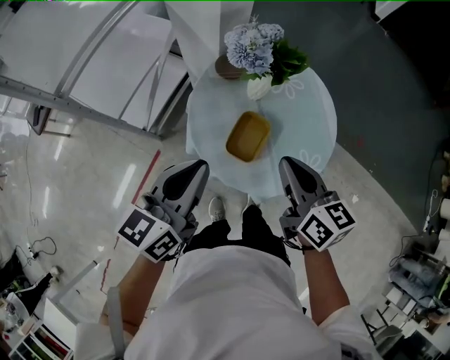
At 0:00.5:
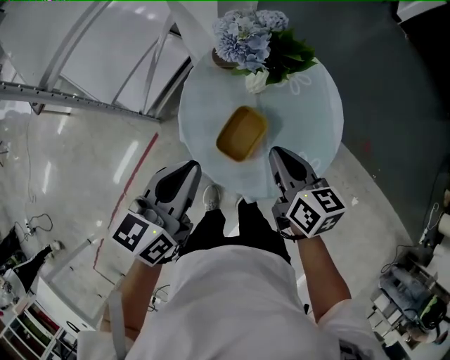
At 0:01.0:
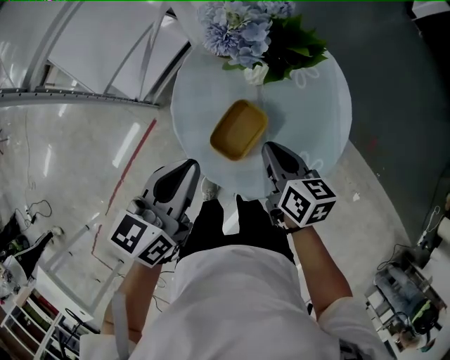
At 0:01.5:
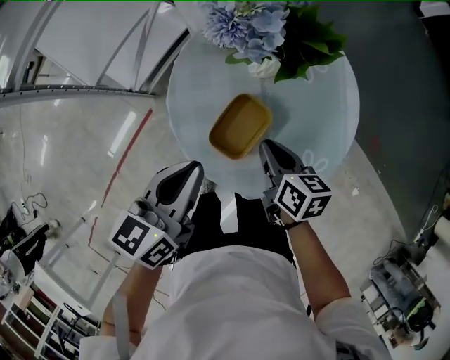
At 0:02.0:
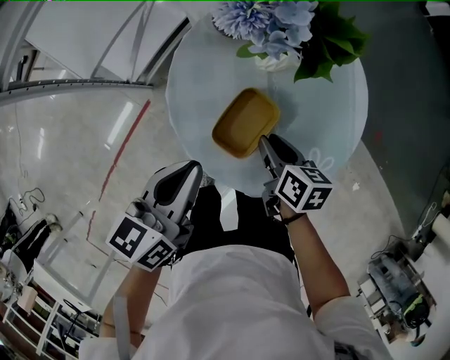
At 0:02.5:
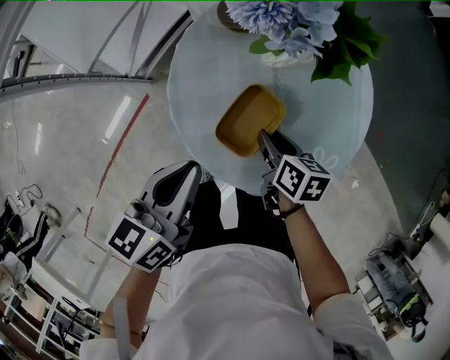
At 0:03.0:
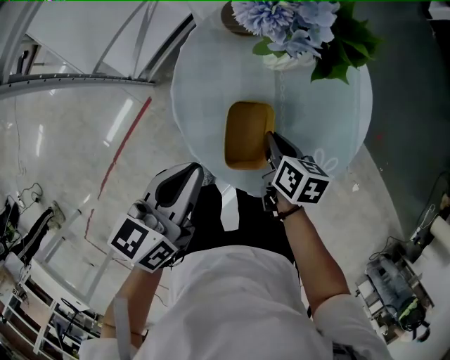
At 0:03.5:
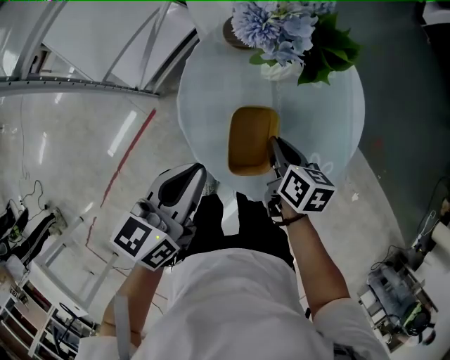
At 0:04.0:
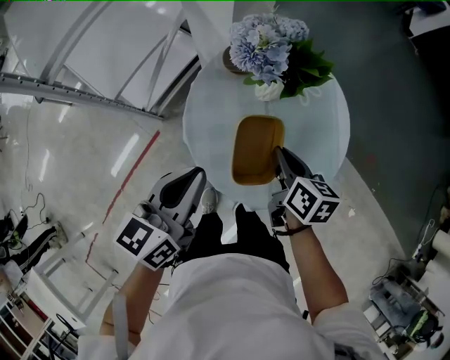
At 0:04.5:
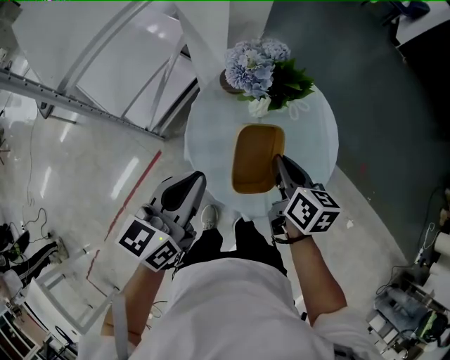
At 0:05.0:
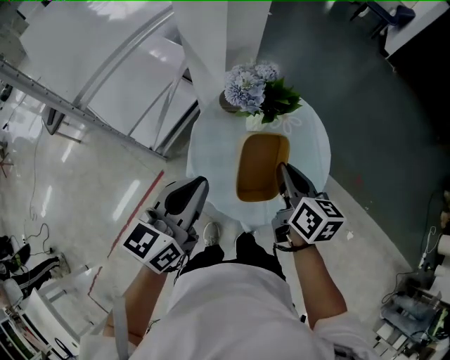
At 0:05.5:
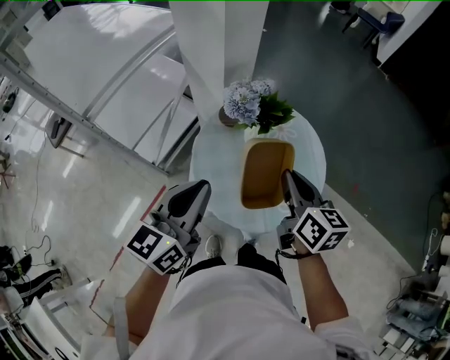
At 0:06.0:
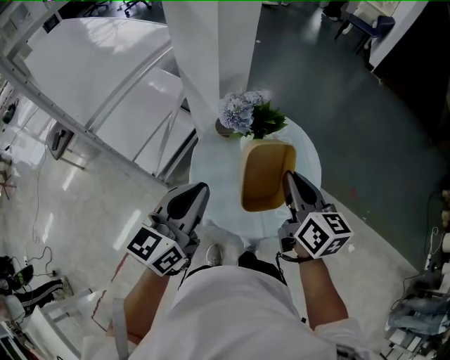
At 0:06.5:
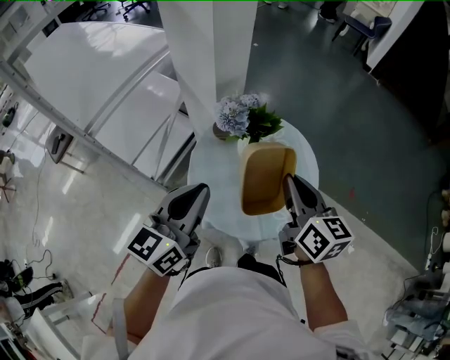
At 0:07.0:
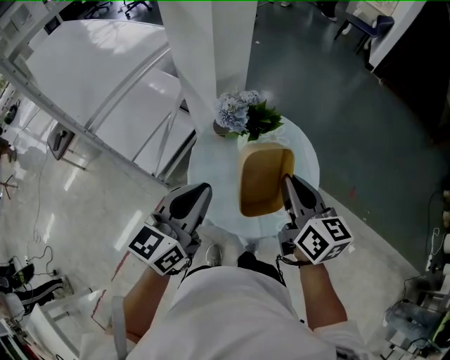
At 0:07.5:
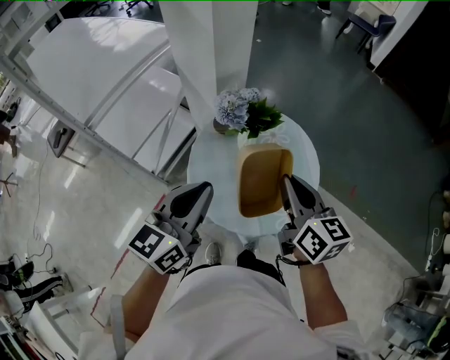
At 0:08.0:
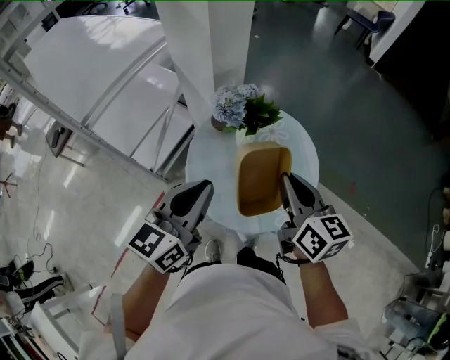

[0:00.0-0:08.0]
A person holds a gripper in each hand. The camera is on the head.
0:00.0 to 0:02.0: The right gripper shifts approximately 25 cm downward, rotates approximately 30 degrees, and opens up. Meanwhile the left gripper heads downward, covering roughly 15 cm.
0:02.0 to 0:04.0: The grippers both shift upward by some 10 cm. The right gripper closes its fingers.
0:04.0 to 0:06.0: The right gripper heads upward, covering some 25 cm, and swivels about 30 degrees; the left gripper goes roughly 15 cm upward.
0:06.0 to 0:08.0: The grippers move only a little.

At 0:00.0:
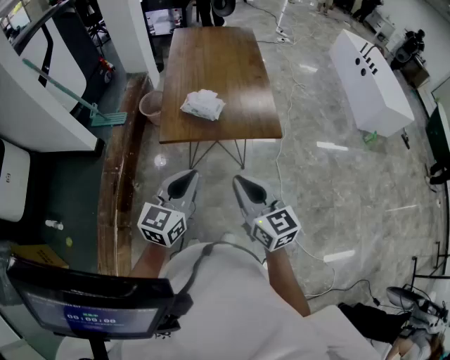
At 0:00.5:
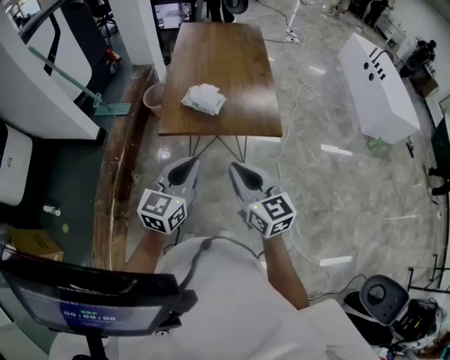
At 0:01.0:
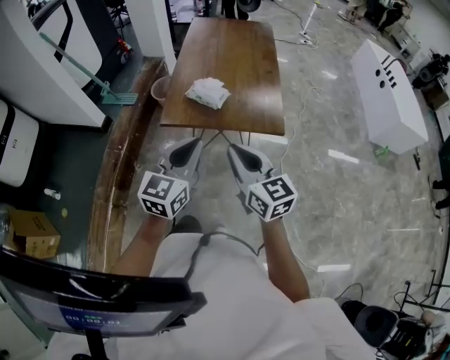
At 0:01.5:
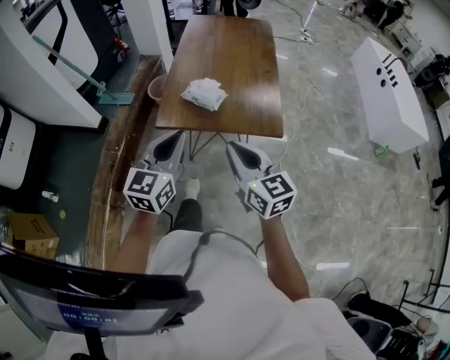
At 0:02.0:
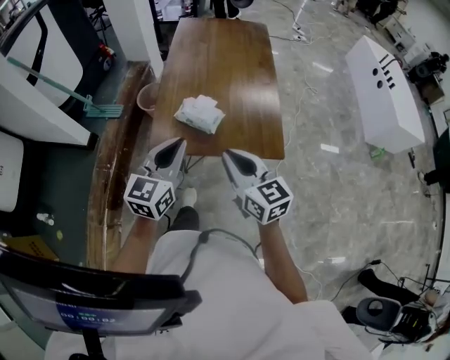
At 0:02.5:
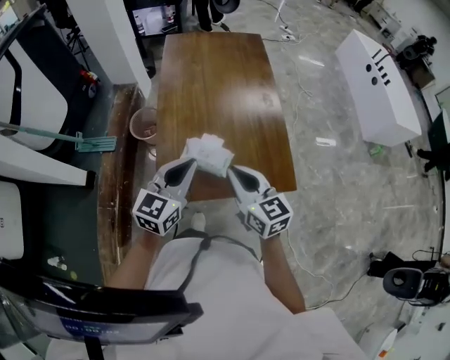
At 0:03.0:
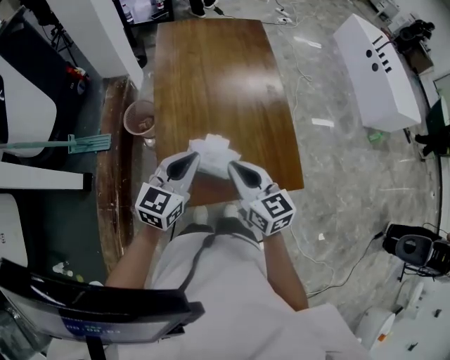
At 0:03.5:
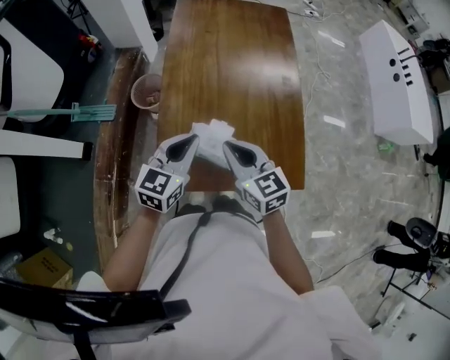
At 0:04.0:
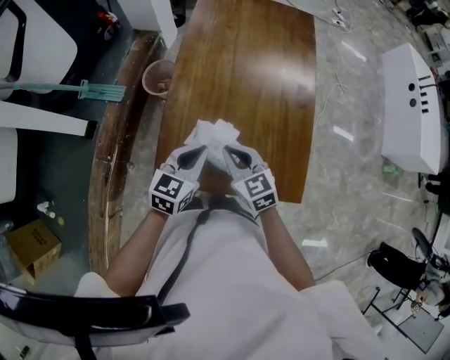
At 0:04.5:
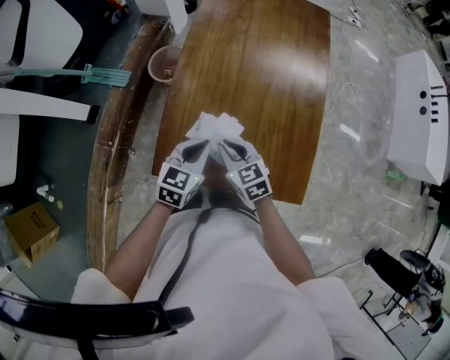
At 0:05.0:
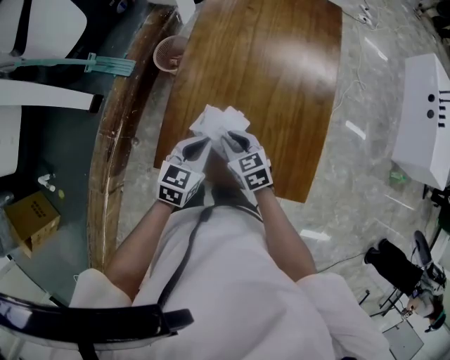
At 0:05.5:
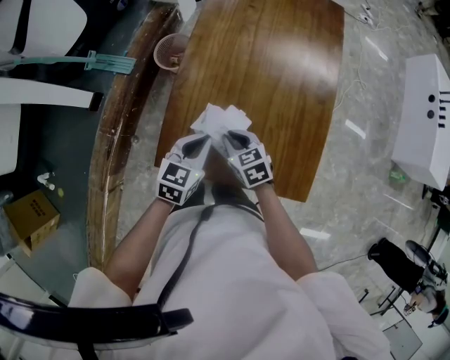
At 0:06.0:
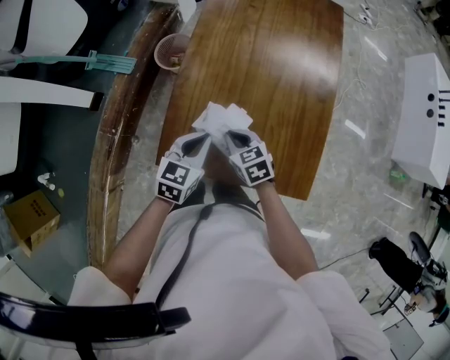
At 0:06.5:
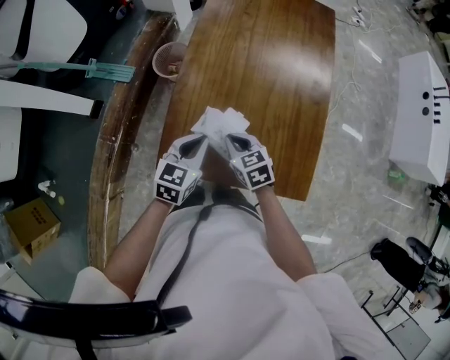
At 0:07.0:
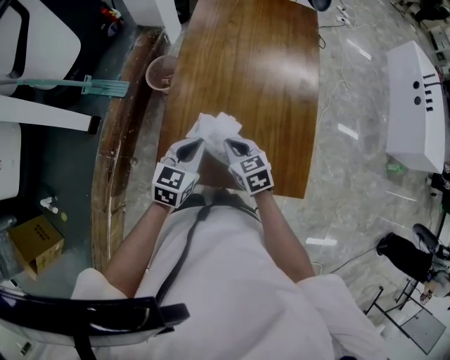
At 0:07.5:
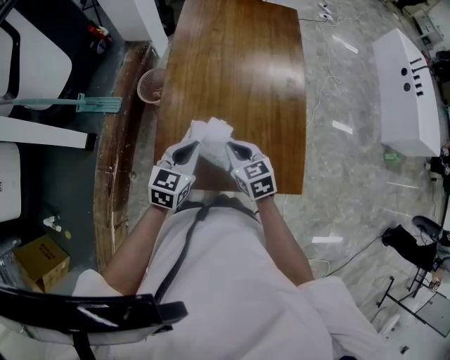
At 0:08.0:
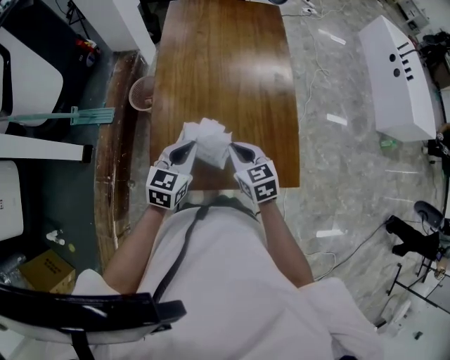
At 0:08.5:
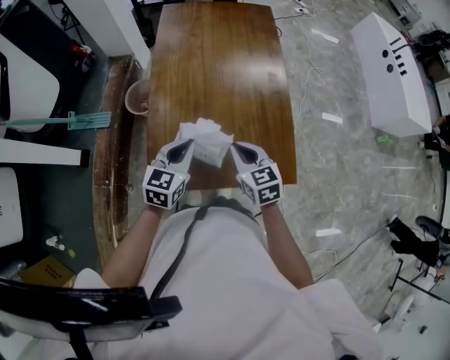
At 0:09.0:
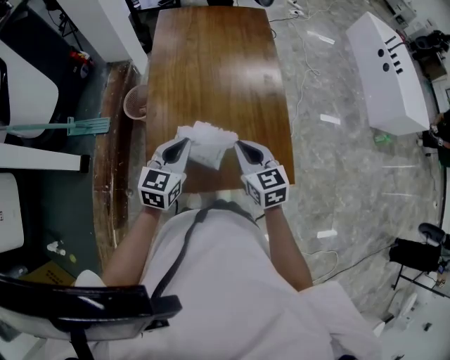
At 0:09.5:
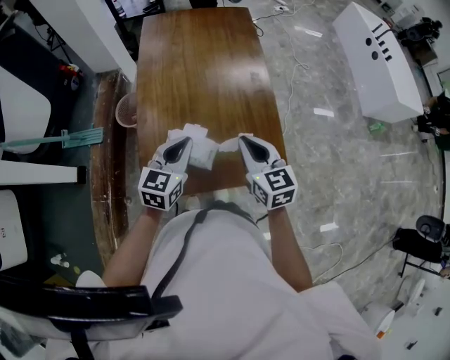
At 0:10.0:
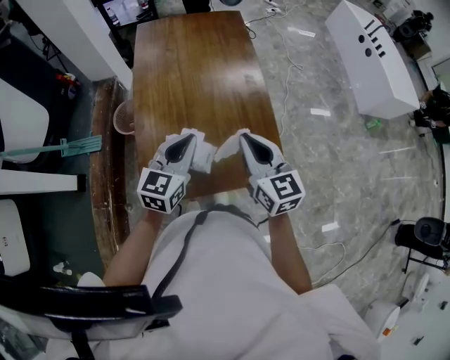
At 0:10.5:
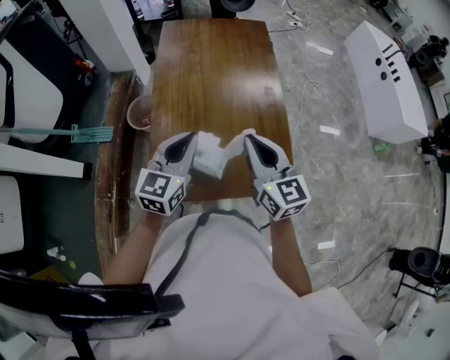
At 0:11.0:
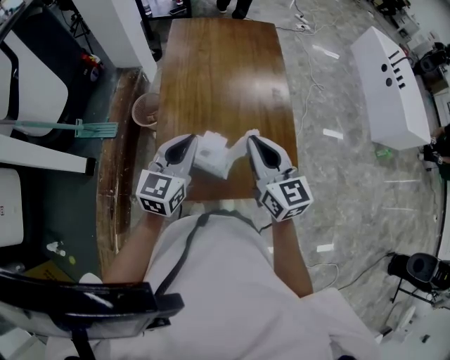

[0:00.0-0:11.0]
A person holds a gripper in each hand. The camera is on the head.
0:00.0 to 0:02.0: The grippers both shift forward by roughly 20 cm.
0:02.0 to 0:03.5: Both grippers move forward, about 25 cm.
0:03.5 to 0:05.5: The right gripper heads downward, covering approximately 20 cm, and changes its angle by about 30 degrees; the left gripper travels downward by approximately 10 cm.
0:05.5 to 0:07.5: The right gripper shifts some 5 cm upward.
0:07.5 to 0:09.0: The right gripper is displaced upward and to the right by approximately 10 cm.
0:09.0 to 0:11.0: The two grippers go roughly 10 cm upward.

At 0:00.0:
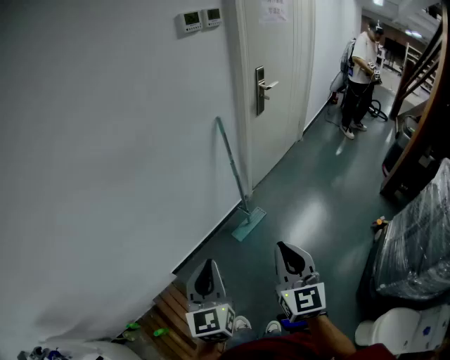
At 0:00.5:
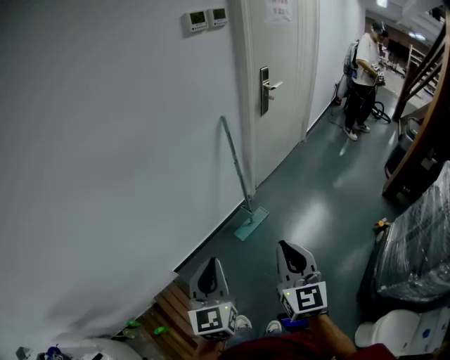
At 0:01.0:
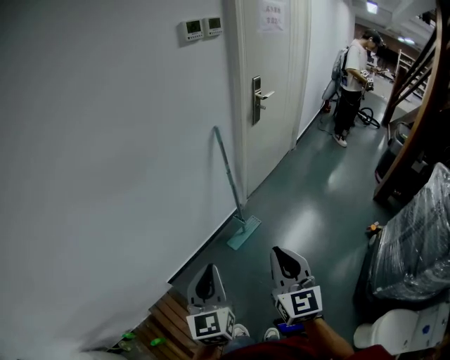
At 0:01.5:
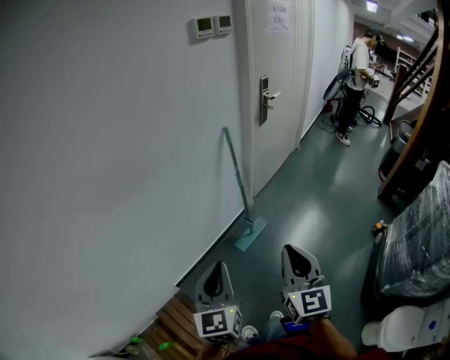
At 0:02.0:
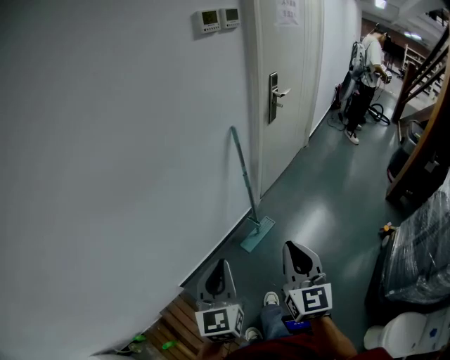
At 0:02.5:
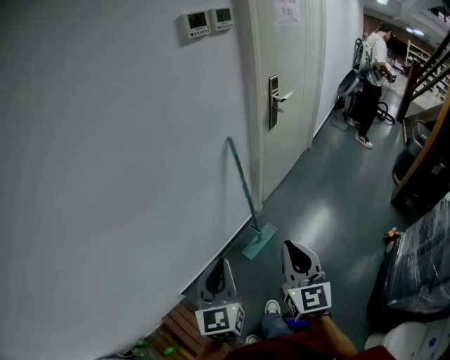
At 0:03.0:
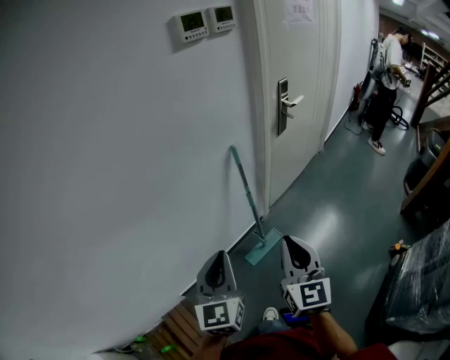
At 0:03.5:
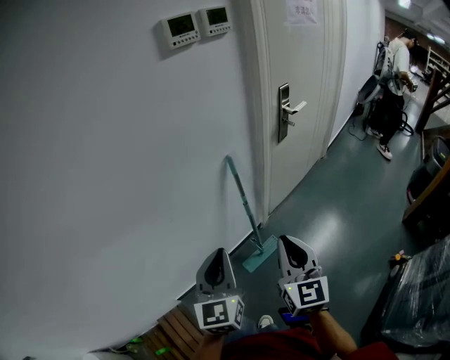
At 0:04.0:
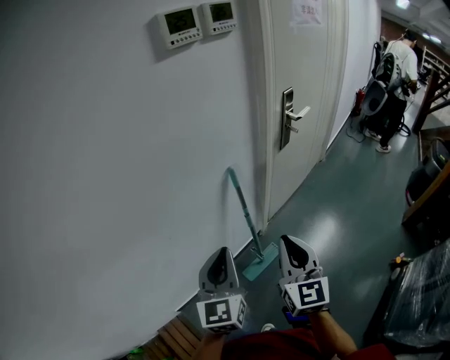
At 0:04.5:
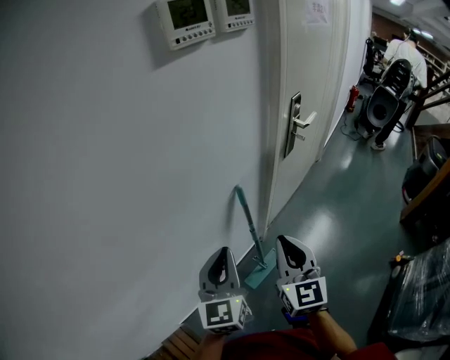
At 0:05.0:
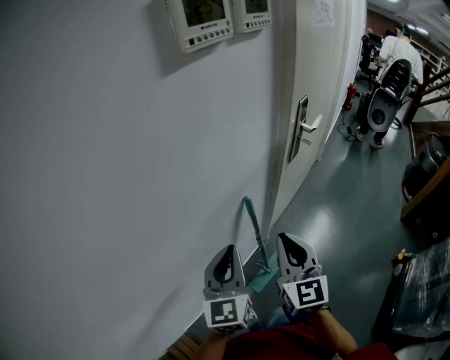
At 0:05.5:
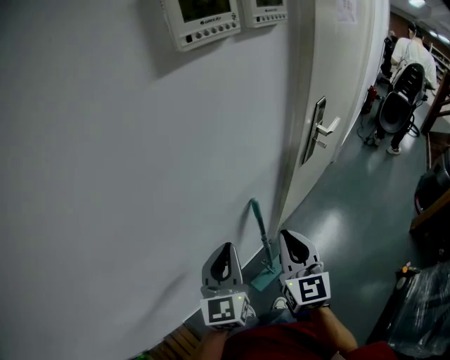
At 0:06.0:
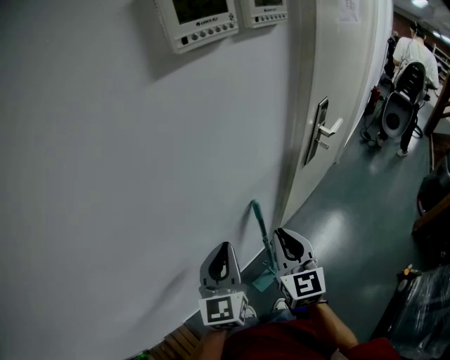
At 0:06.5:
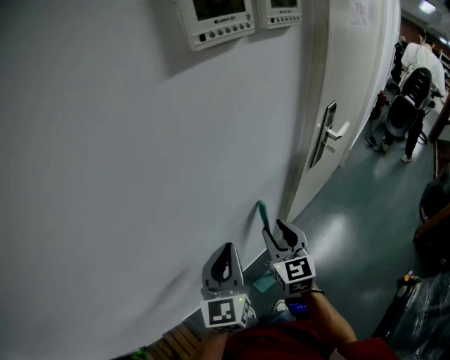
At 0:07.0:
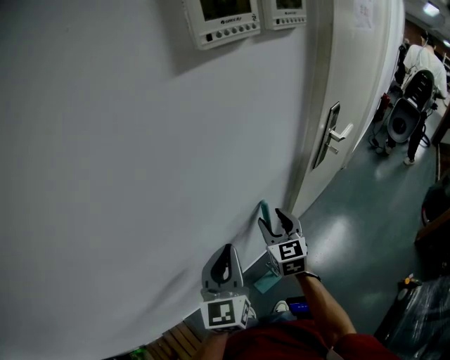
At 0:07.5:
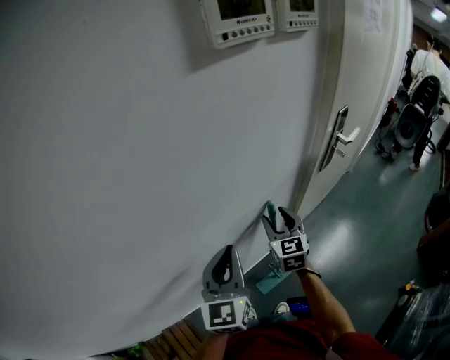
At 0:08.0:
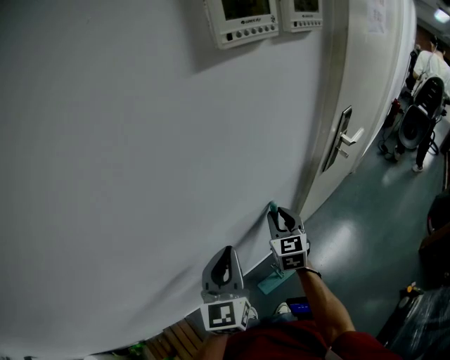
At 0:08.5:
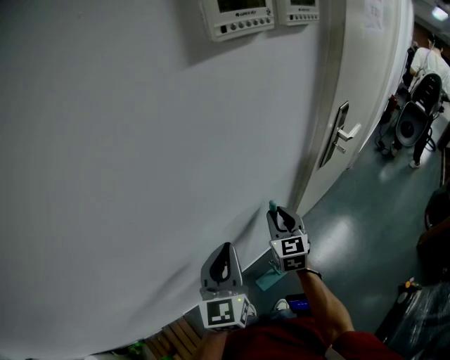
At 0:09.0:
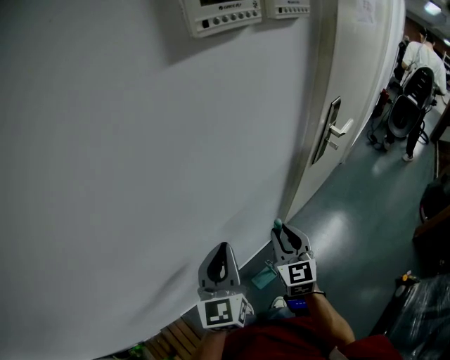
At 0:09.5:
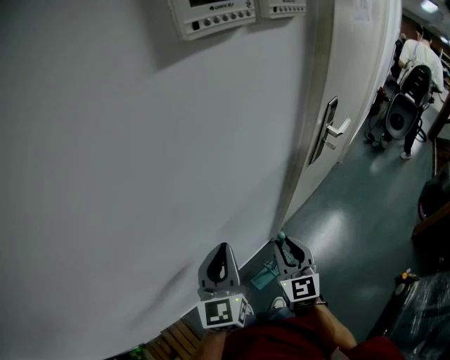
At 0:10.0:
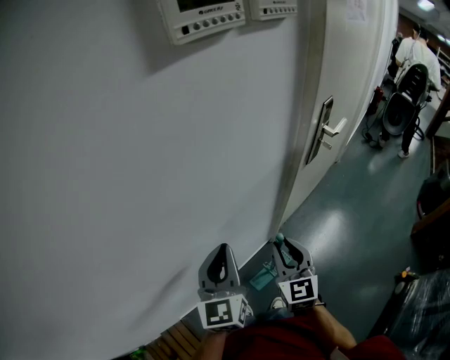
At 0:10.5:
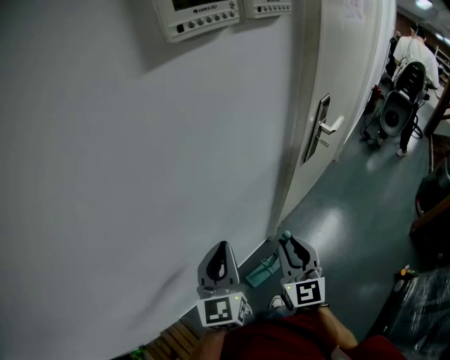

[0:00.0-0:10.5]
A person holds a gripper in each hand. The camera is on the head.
0:00.0 to 0:02.0: The grippers both shift forward by about 10 cm.
0:02.0 to 0:04.0: The two grippers go about 30 cm forward.
0:04.0 to 0:06.5: Both grippers move forward, about 20 cm. The right gripper opens.
0:06.5 to 0:08.5: The right gripper moves forward, roughly 5 cm.
0:08.5 to 0:10.5: The right gripper moves backward, approximately 10 cm.
